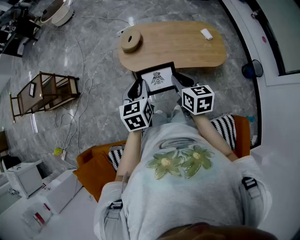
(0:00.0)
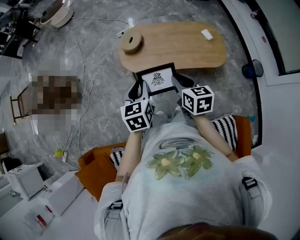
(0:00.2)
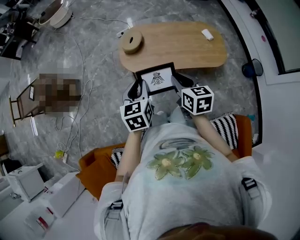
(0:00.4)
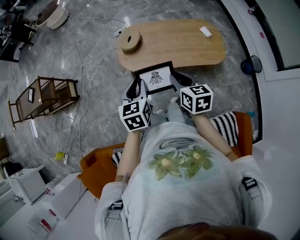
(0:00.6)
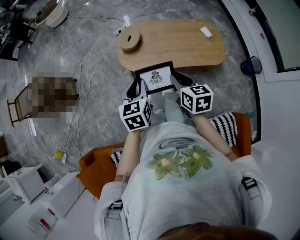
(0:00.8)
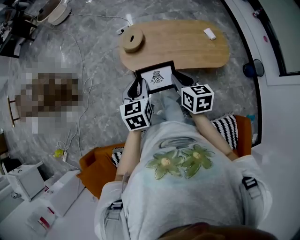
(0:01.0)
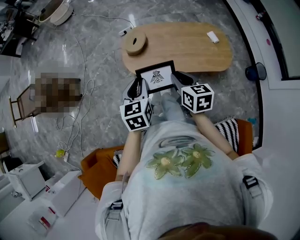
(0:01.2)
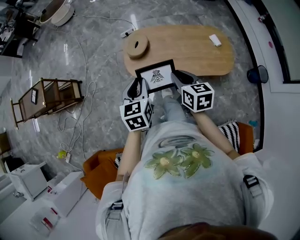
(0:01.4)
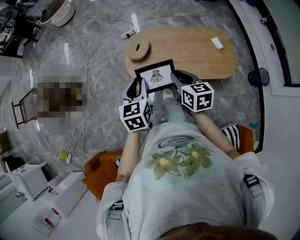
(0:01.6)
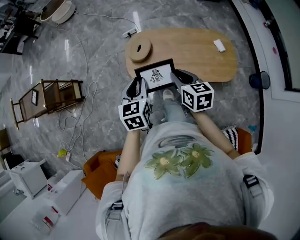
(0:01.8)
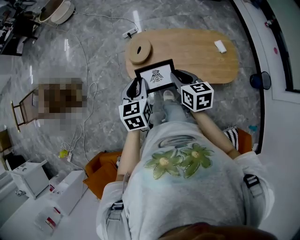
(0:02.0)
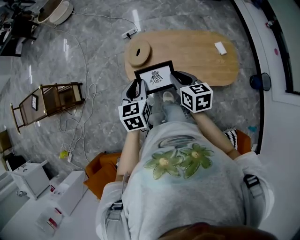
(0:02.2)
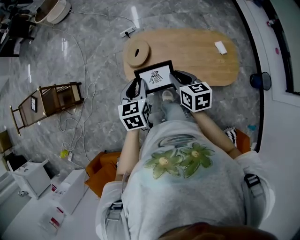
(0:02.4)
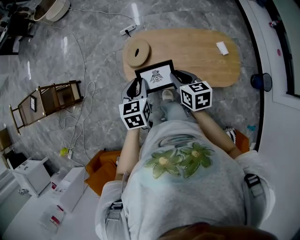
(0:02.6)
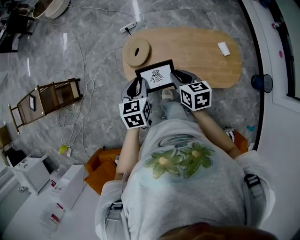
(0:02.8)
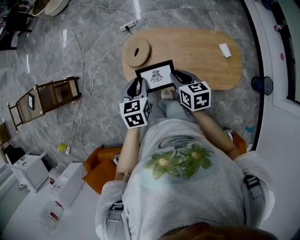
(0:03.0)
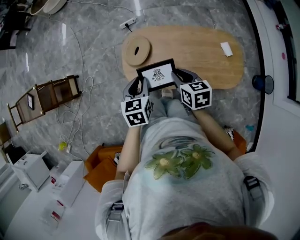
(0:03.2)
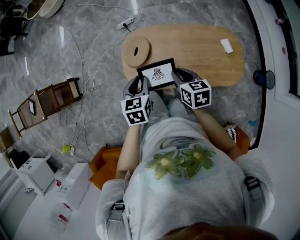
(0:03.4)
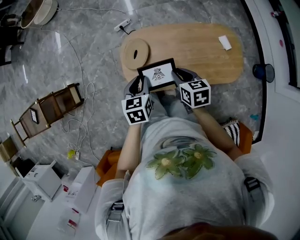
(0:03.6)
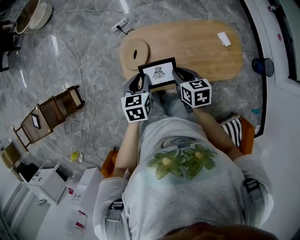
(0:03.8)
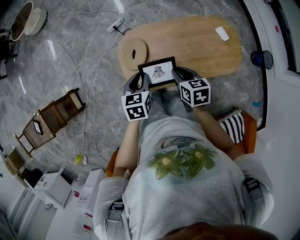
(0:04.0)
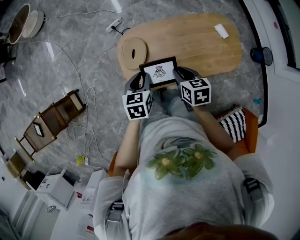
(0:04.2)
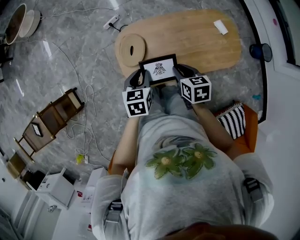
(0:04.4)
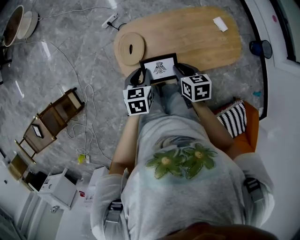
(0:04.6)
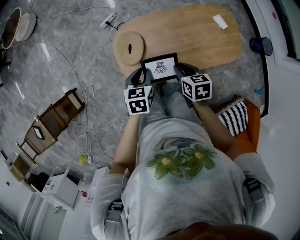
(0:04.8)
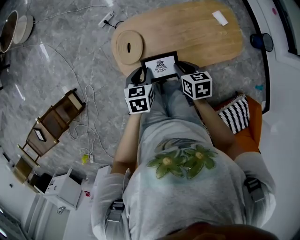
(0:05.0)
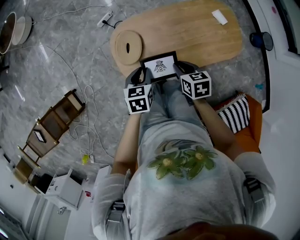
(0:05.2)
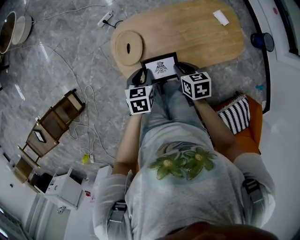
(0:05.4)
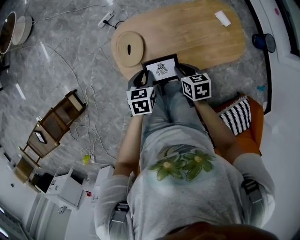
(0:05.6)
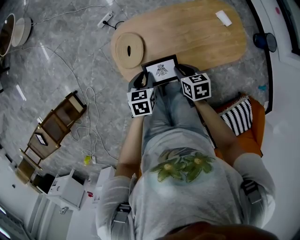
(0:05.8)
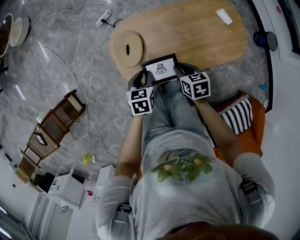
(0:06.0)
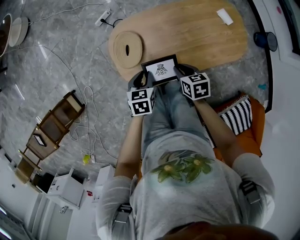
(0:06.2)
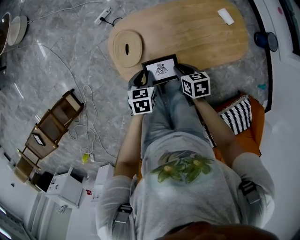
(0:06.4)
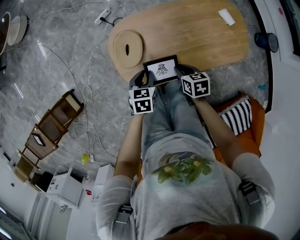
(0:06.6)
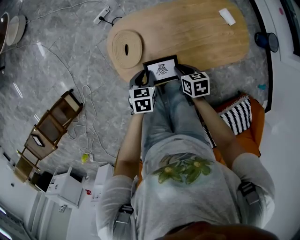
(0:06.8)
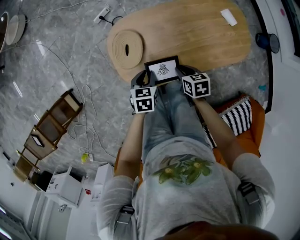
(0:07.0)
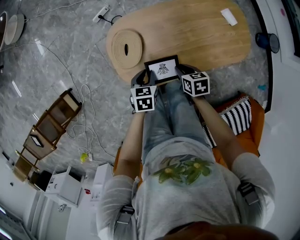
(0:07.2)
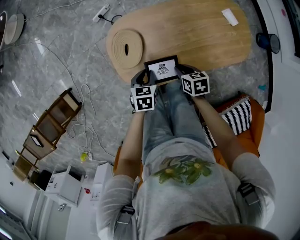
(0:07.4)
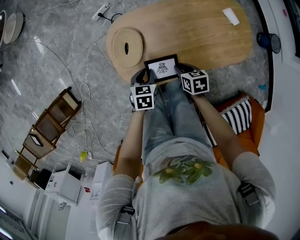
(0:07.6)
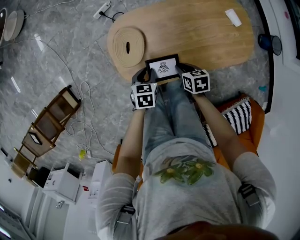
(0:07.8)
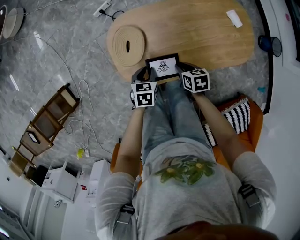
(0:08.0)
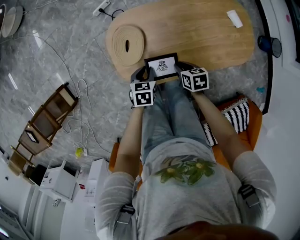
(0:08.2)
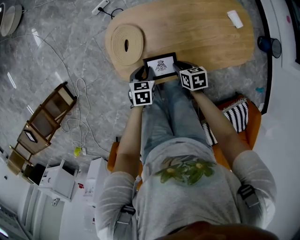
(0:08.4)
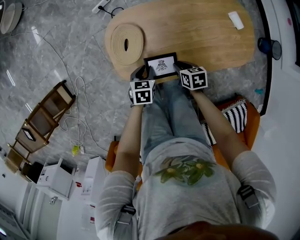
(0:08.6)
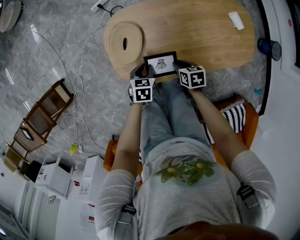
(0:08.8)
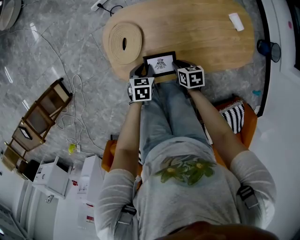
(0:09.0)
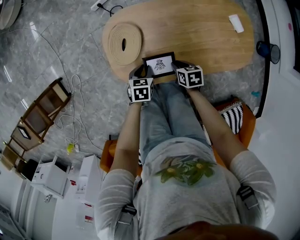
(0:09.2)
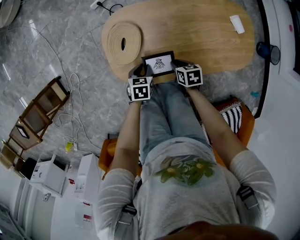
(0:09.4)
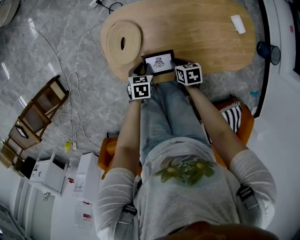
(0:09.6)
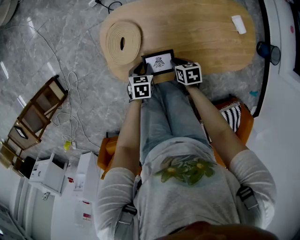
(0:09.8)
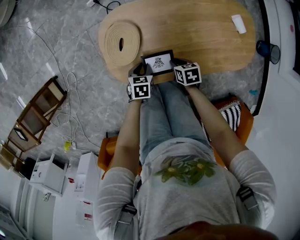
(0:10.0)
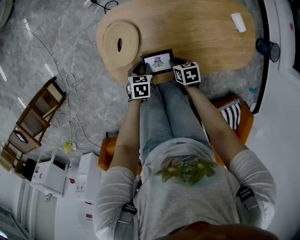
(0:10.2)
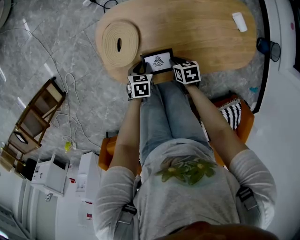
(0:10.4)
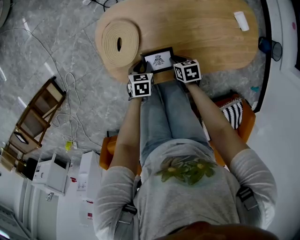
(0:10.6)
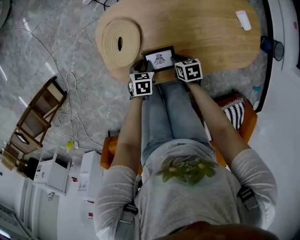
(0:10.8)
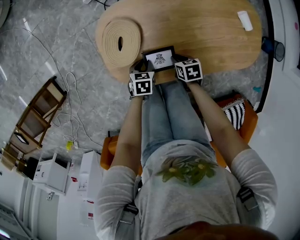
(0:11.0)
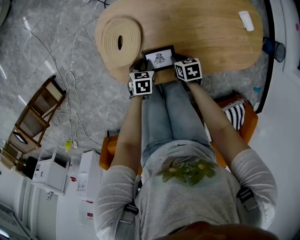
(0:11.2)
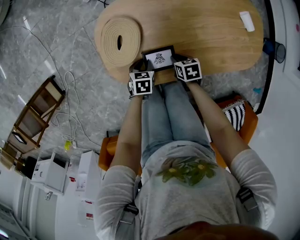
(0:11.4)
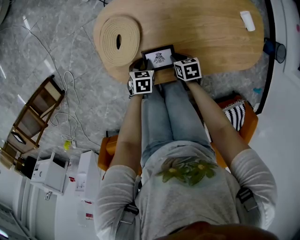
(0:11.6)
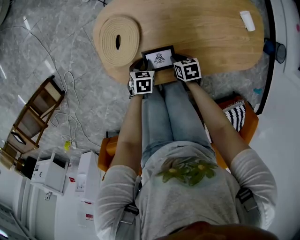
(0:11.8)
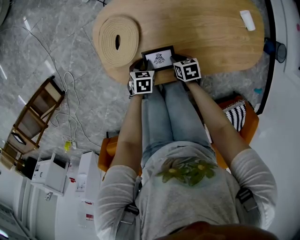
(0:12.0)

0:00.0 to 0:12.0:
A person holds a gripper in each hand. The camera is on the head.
0:00.0 to 0:01.6: The two grippers go about 15 cm forward.
0:01.6 to 0:03.0: Both grippers move forward and downward, approximately 15 cm.
0:03.0 to 0:04.4: The right gripper travels downward by approximately 5 cm. Meanwhile the left gripper goes some 10 cm downward and forward, and swivels about 20 degrees.
0:04.4 to 0:06.0: The two grippers go about 10 cm downward.
0:06.0 to 0:07.6: The two grippers go approximately 10 cm downward.
0:07.6 to 0:09.0: The left gripper moves about 5 cm. The right gripper heads downward, covering some 5 cm.
0:09.0 to 0:10.4: Both grippers move downward, some 10 cm.
0:10.4 to 0:12.0: There are only small adjustments of the grippers.

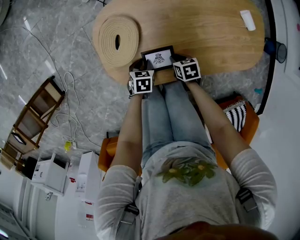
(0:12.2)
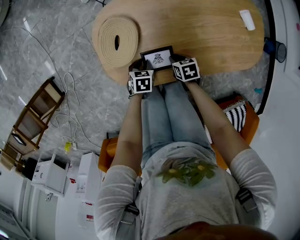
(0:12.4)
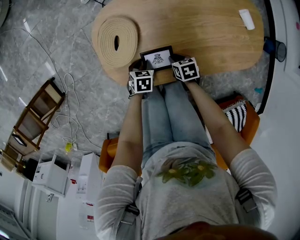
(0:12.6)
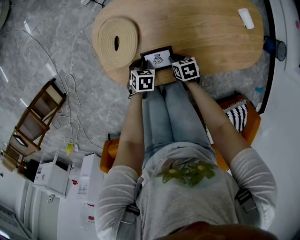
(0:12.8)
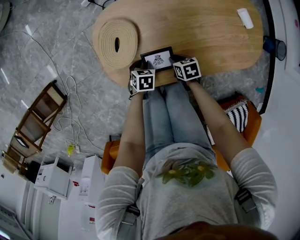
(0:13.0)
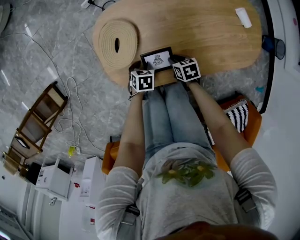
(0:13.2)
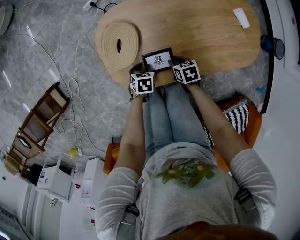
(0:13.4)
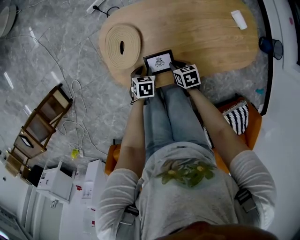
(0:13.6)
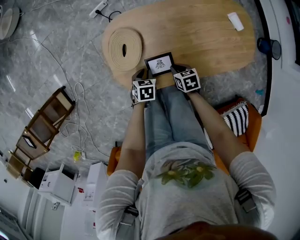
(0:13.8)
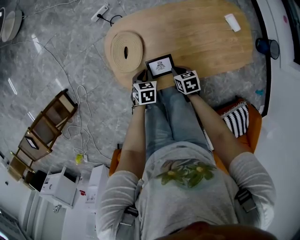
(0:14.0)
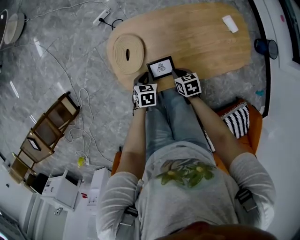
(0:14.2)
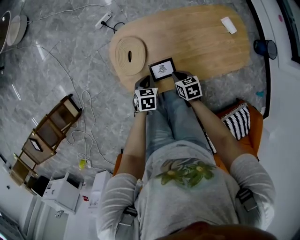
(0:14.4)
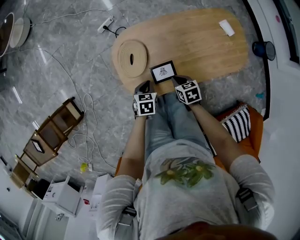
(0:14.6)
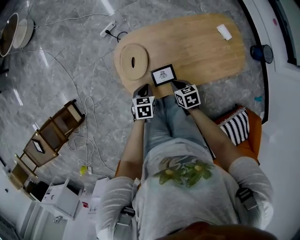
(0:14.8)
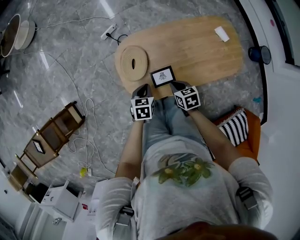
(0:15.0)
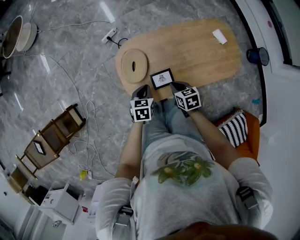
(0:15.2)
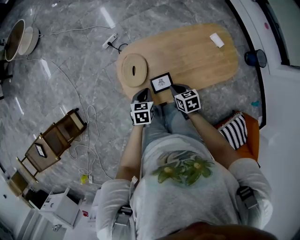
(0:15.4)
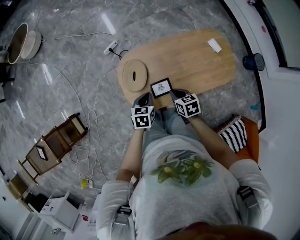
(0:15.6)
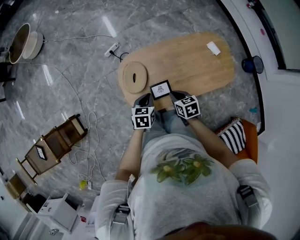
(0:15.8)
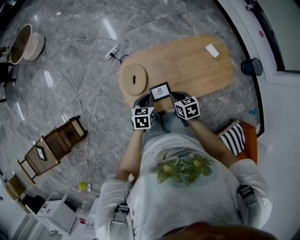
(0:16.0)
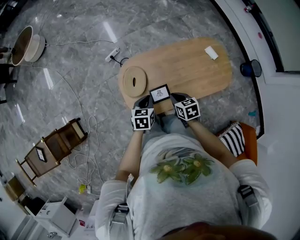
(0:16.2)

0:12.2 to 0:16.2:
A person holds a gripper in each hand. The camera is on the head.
0:12.2 to 0:13.6: The grippers make only small movements.
0:13.6 to 0:14.8: The two grippers go approximately 15 cm upward. The left gripper closes its fingers.
0:14.8 to 0:16.2: The grippers both shift upward by roughly 10 cm.

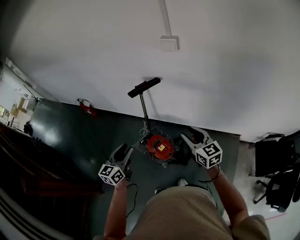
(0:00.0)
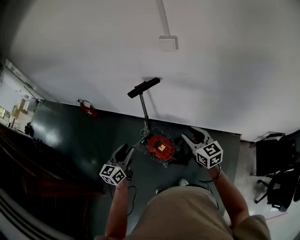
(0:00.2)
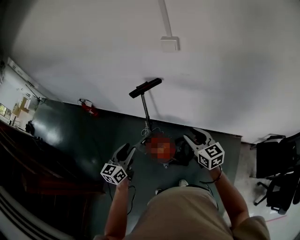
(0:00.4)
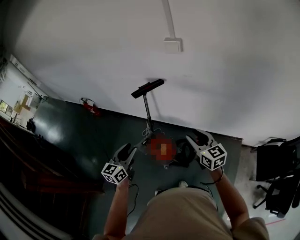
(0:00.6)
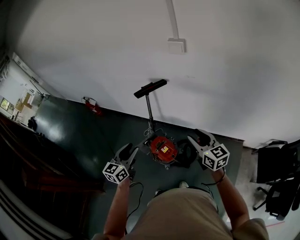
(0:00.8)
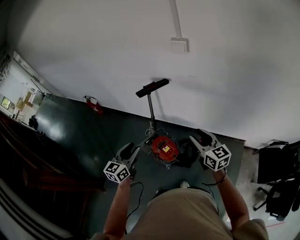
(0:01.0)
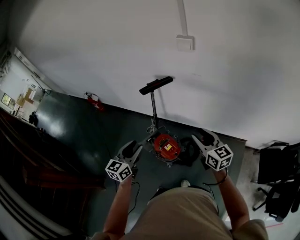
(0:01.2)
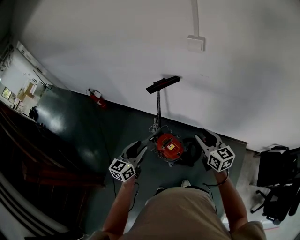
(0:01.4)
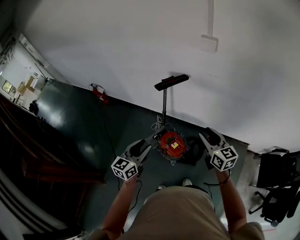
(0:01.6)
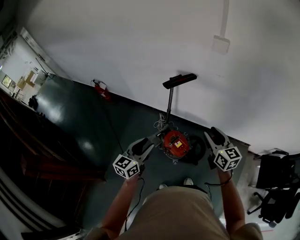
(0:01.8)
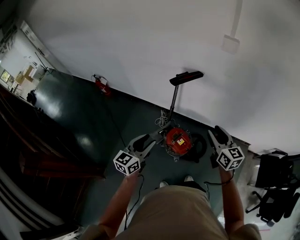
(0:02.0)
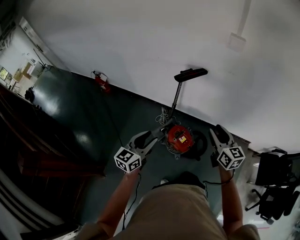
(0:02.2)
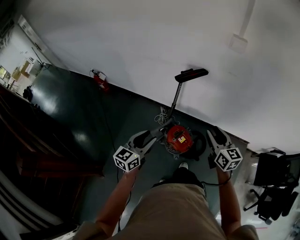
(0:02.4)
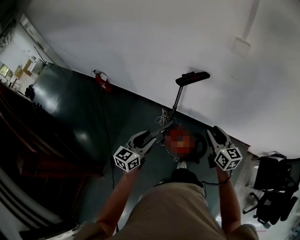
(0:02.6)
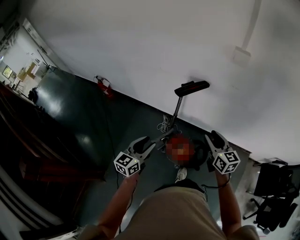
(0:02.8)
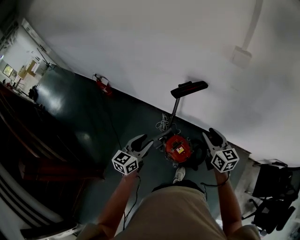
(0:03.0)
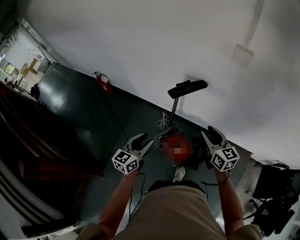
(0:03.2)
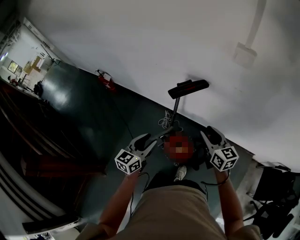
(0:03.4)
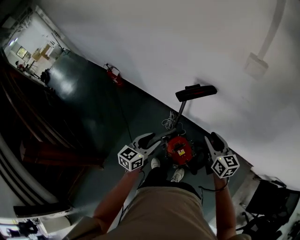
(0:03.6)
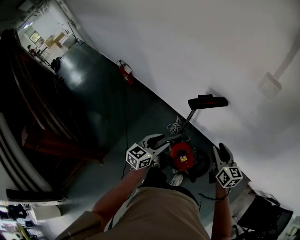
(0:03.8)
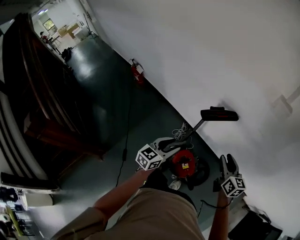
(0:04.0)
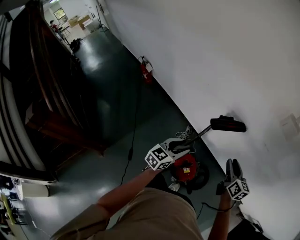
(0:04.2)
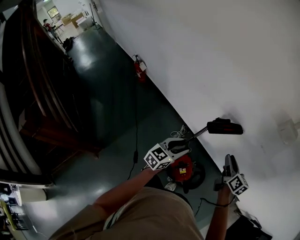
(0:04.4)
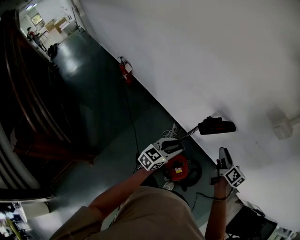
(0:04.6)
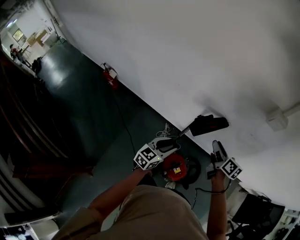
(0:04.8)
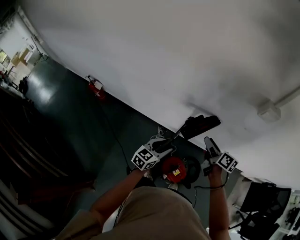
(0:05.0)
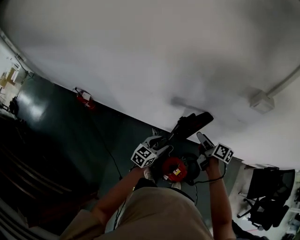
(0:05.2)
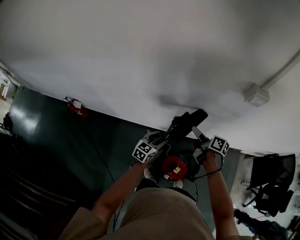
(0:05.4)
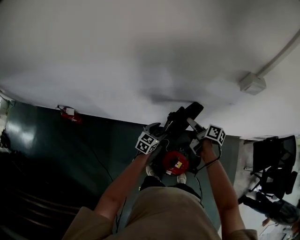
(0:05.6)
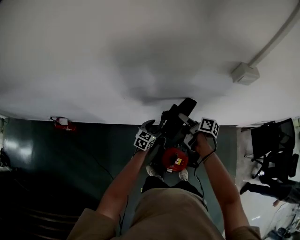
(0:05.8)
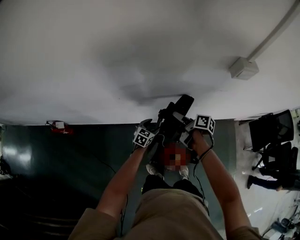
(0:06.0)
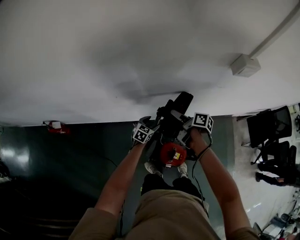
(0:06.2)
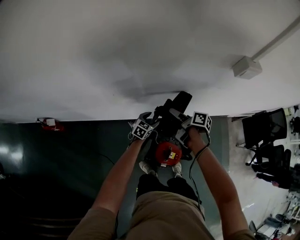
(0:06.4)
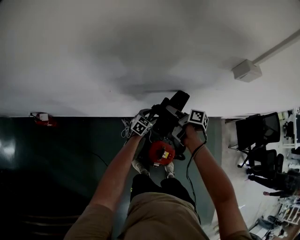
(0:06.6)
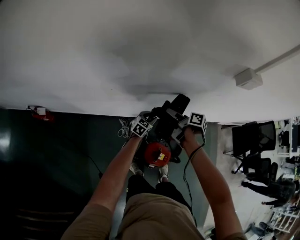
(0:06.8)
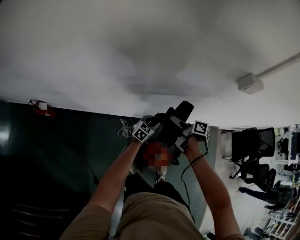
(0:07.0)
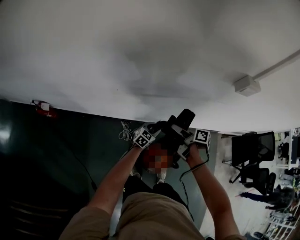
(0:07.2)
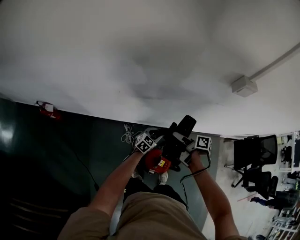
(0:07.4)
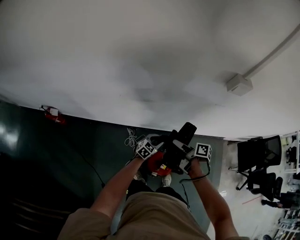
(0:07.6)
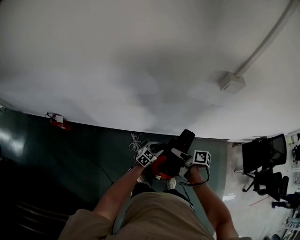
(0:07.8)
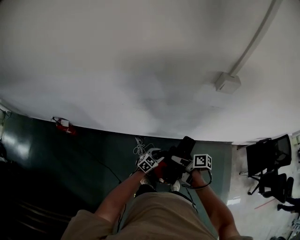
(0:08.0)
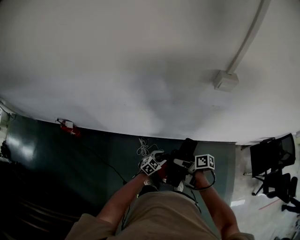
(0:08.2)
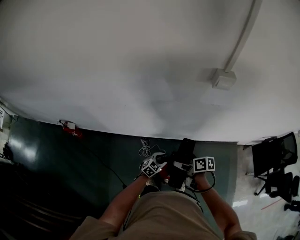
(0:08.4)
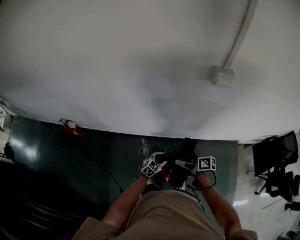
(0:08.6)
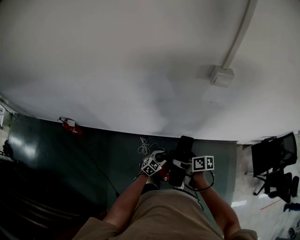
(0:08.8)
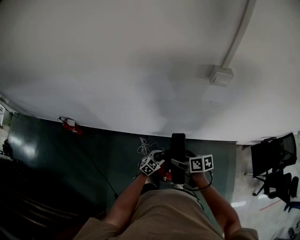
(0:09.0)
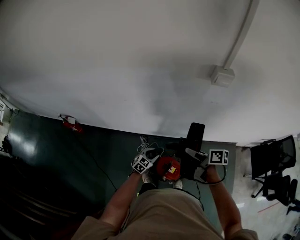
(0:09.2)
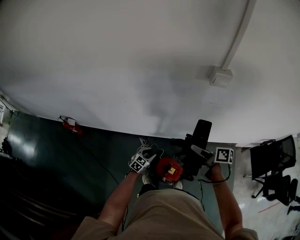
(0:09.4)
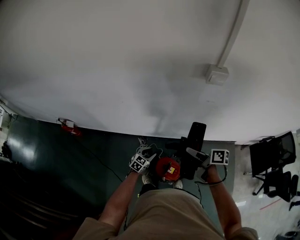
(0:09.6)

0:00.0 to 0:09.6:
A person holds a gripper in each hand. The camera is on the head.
0:00.0 to 0:01.6: The right gripper moves to the left, roughly 5 cm.
0:01.6 to 0:03.2: Both grippers move forward and to the left, approximately 15 cm.
0:03.2 to 0:04.8: The two grippers go approximately 15 cm forward. The right gripper swivels approximately 30 degrees.
0:04.8 to 0:06.4: The left gripper moves downward and forward, roughly 30 cm, and turns by some 30 degrees. The right gripper is displaced downward, forward and to the left by approximately 15 cm, rotates approximately 40 degrees, and opens up.
0:06.4 to 0:08.0: The right gripper heads backward, covering roughly 20 cm, and rotates roughly 20 degrees. The left gripper goes approximately 20 cm backward and to the right, and closes.
0:08.0 to 0:09.6: The left gripper shifts roughly 5 cm to the left. Meanwhile the right gripper heads upward and to the right, covering roughly 15 cm.
